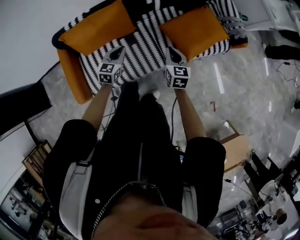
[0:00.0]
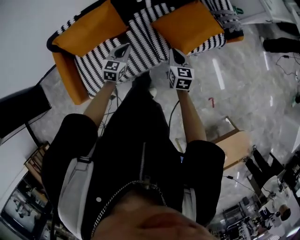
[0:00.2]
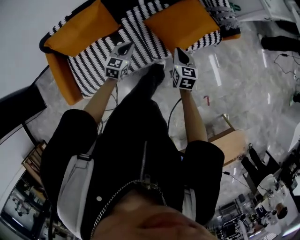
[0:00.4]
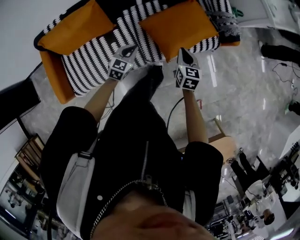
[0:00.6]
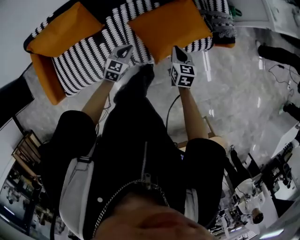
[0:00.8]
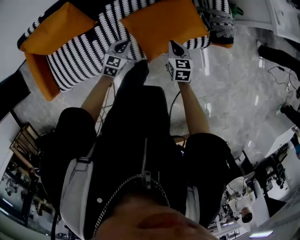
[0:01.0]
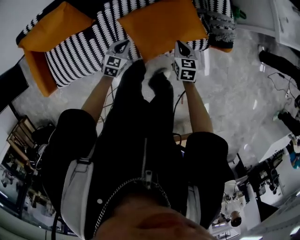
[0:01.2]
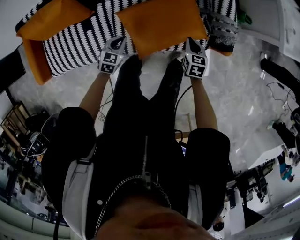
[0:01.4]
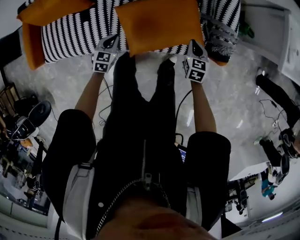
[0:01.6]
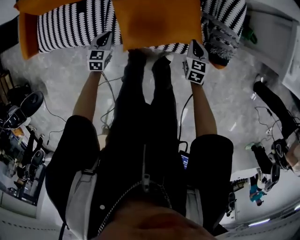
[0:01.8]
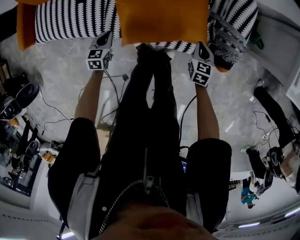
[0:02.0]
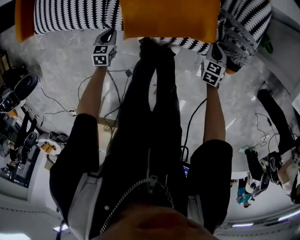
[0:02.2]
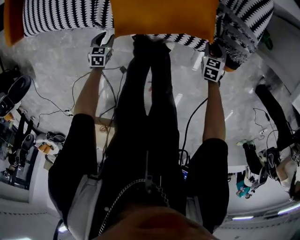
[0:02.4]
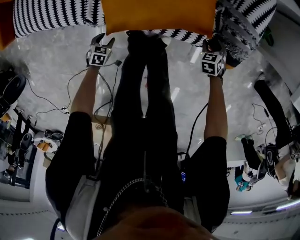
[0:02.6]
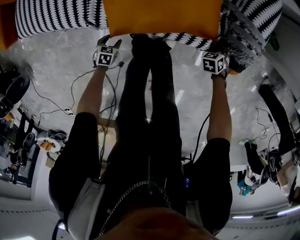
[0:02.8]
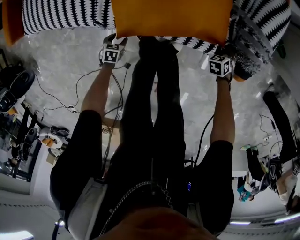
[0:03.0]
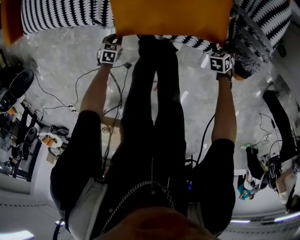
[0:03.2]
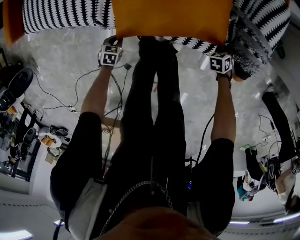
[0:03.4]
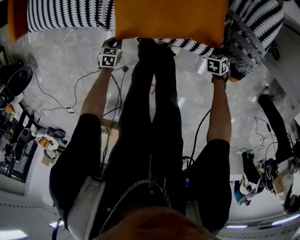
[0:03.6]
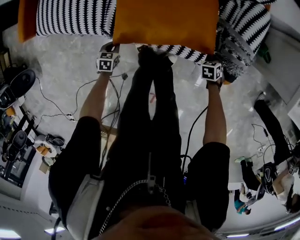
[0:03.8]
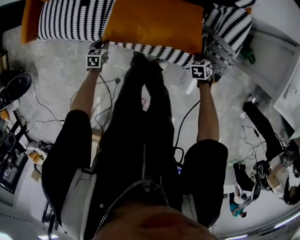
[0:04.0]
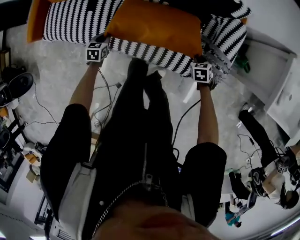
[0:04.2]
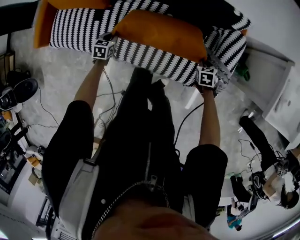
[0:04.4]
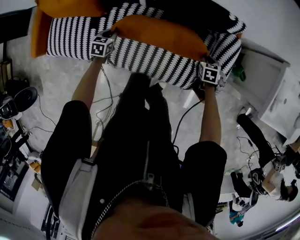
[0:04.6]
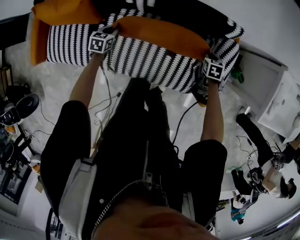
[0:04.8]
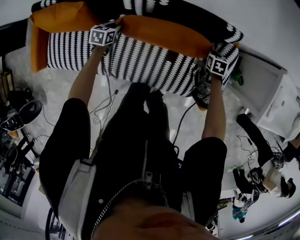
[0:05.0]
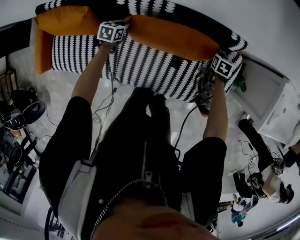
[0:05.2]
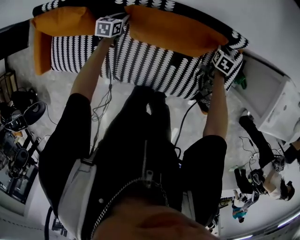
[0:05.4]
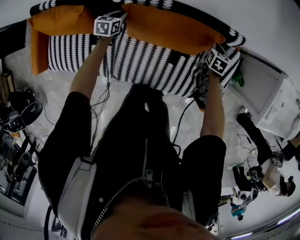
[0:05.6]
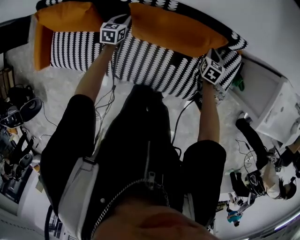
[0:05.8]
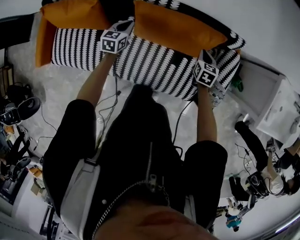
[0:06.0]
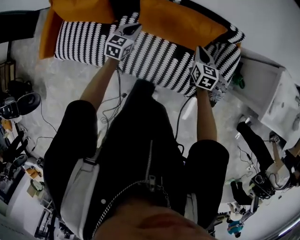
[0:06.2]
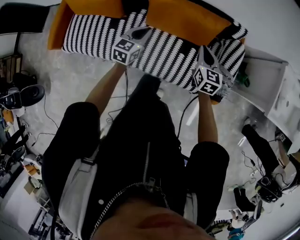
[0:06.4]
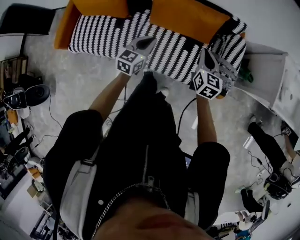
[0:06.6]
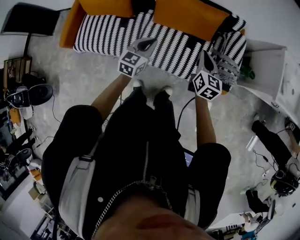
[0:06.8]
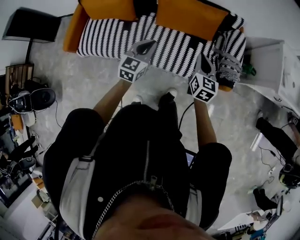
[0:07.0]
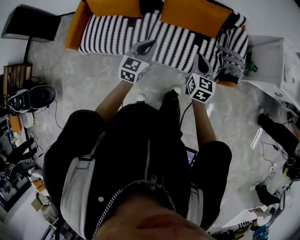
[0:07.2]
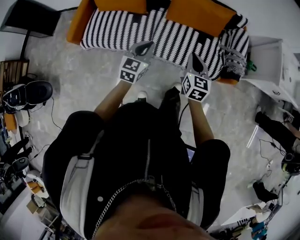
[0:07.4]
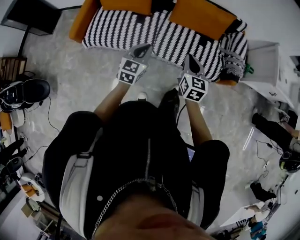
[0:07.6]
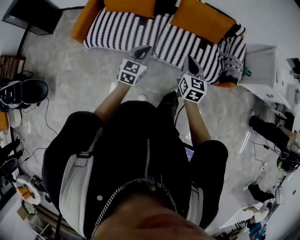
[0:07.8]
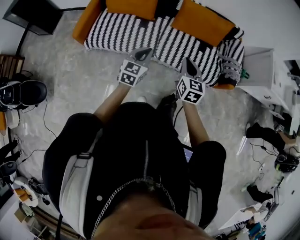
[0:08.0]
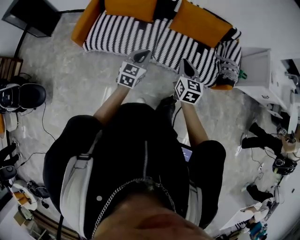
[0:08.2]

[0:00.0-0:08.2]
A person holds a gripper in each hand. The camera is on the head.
0:00.0 to 0:01.6: The pair of grippers is taken to the right and forward, some 50 cm. The left gripper goes roughly 15 cm downward, and rotates approximately 20 degrees. Meanwhile the right gripper changes its angle by approximately 30 degrees.
0:01.6 to 0:03.2: Both grippers travel together downward, roughly 30 cm. The left gripper changes its angle by roughly 30 degrees, and opens and closes again; the right gripper angles its fingers downward, by roughly 30 degrees, and opens its fingers.
0:03.2 to 0:05.0: The right gripper moves approximately 50 cm, turns by roughly 30 degrees, and closes, while the left gripper changes place by some 60 cm, and swivels some 20 degrees.
0:05.0 to 0:06.6: The right gripper shifts approximately 40 cm backward and upward, and angles its fingers upward, by approximately 40 degrees. Meanwhile the left gripper heads backward, upward and to the right, covering approximately 40 cm, and rotates some 30 degrees.
0:06.6 to 0:08.2: The two grippers travel together, backward and to the left, about 40 cm.

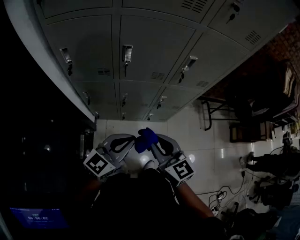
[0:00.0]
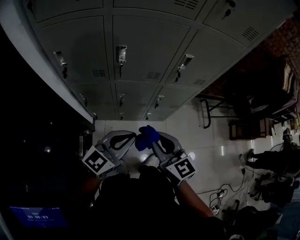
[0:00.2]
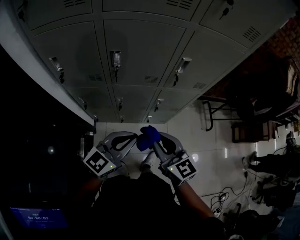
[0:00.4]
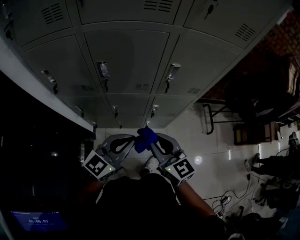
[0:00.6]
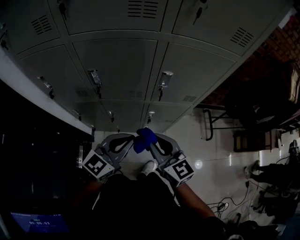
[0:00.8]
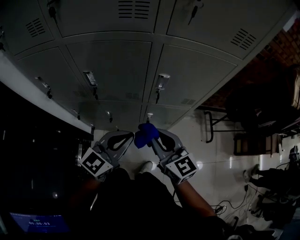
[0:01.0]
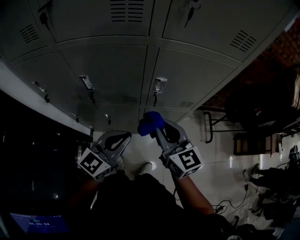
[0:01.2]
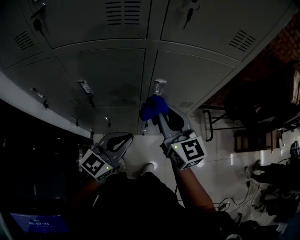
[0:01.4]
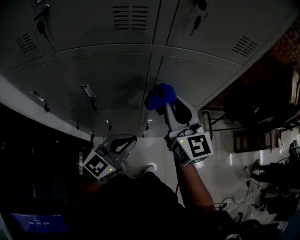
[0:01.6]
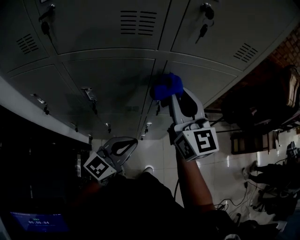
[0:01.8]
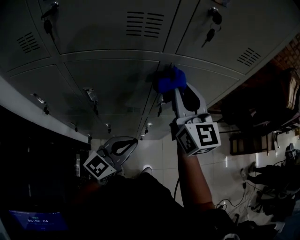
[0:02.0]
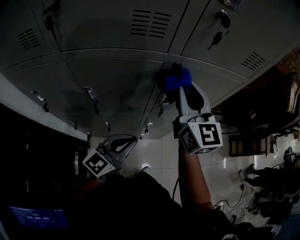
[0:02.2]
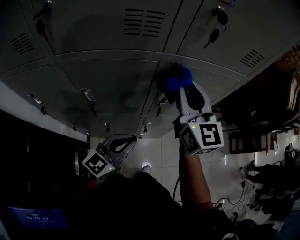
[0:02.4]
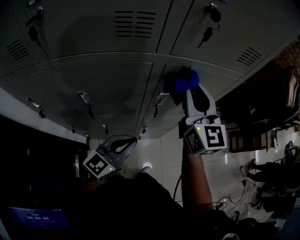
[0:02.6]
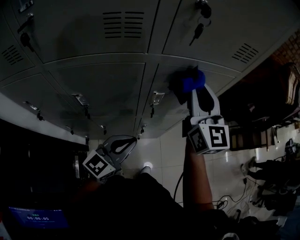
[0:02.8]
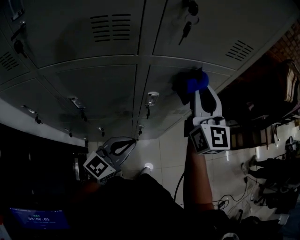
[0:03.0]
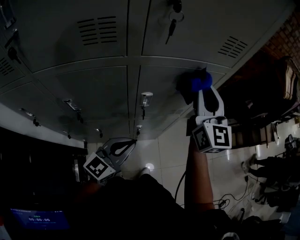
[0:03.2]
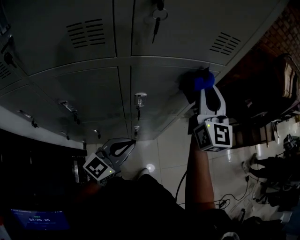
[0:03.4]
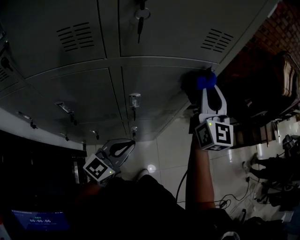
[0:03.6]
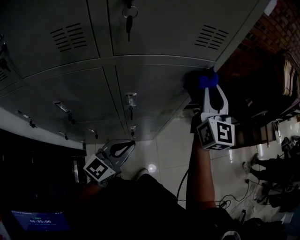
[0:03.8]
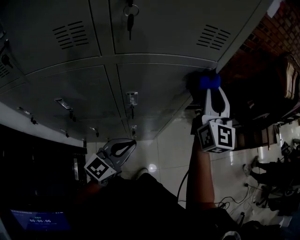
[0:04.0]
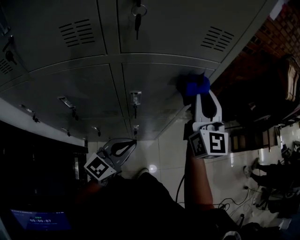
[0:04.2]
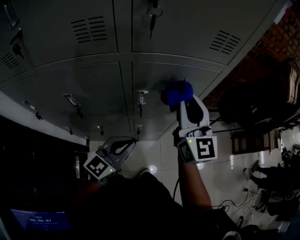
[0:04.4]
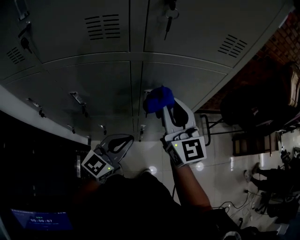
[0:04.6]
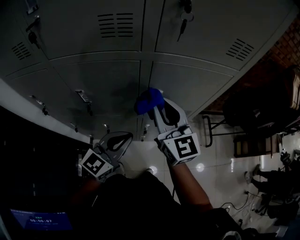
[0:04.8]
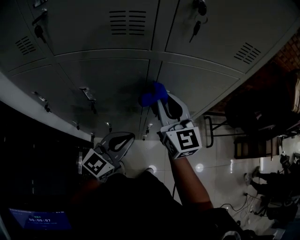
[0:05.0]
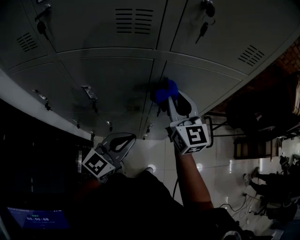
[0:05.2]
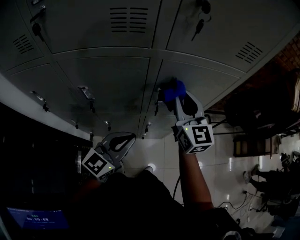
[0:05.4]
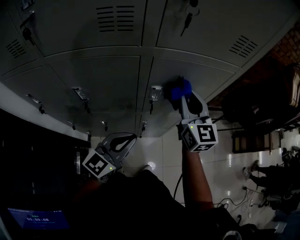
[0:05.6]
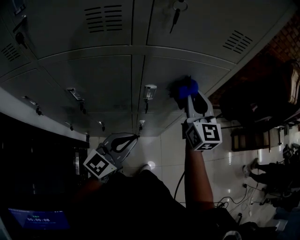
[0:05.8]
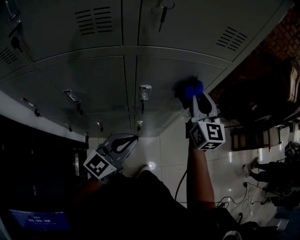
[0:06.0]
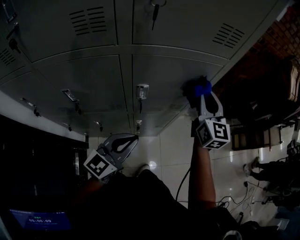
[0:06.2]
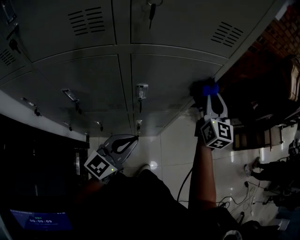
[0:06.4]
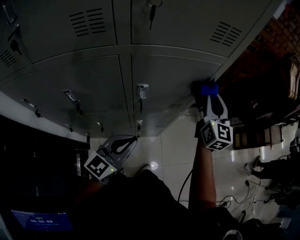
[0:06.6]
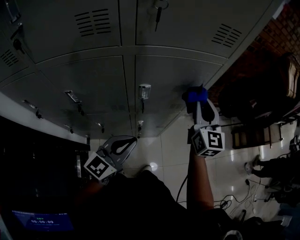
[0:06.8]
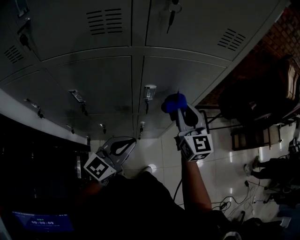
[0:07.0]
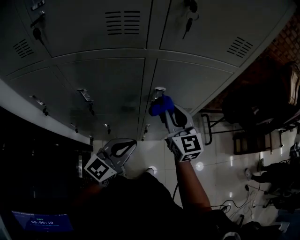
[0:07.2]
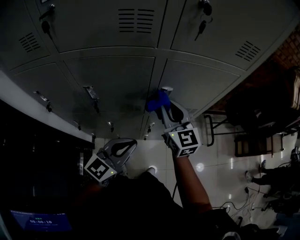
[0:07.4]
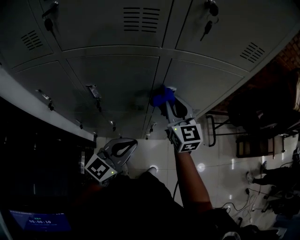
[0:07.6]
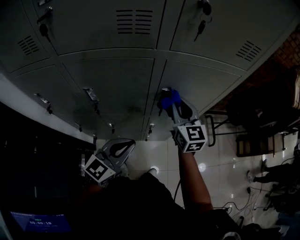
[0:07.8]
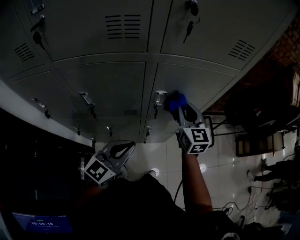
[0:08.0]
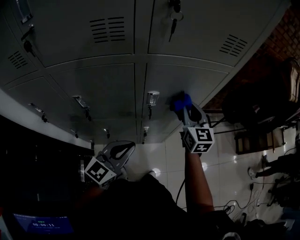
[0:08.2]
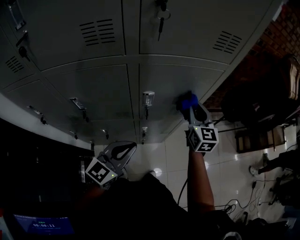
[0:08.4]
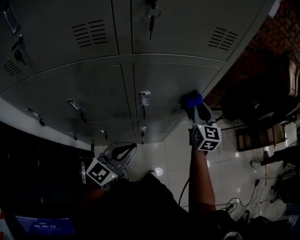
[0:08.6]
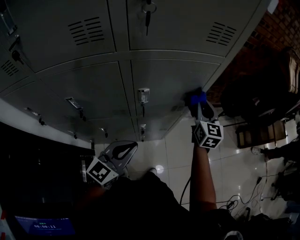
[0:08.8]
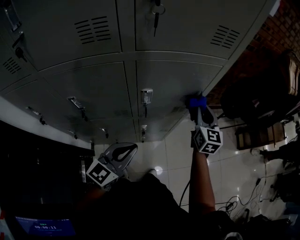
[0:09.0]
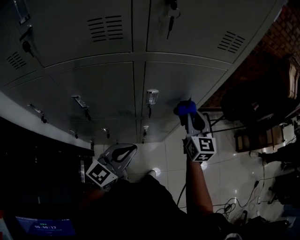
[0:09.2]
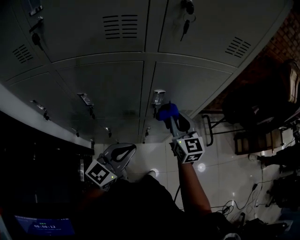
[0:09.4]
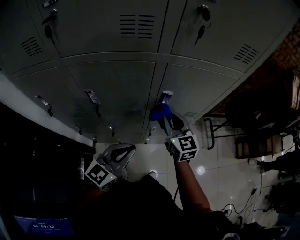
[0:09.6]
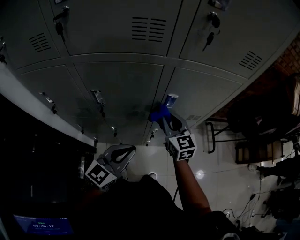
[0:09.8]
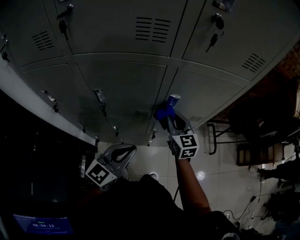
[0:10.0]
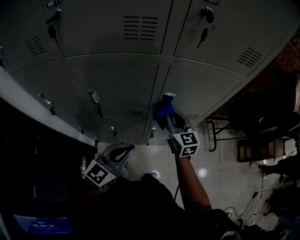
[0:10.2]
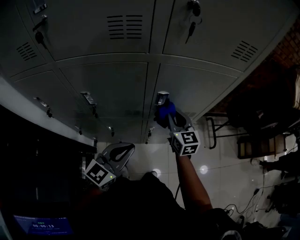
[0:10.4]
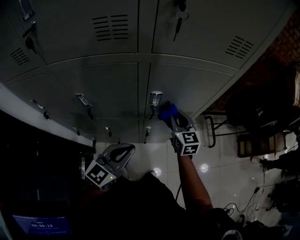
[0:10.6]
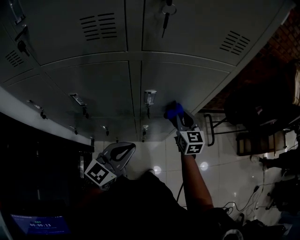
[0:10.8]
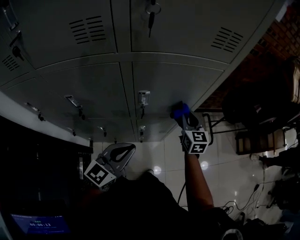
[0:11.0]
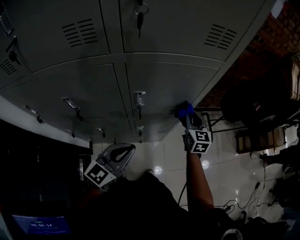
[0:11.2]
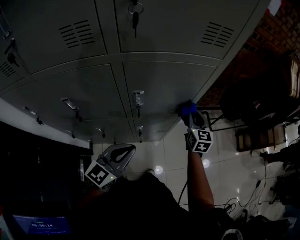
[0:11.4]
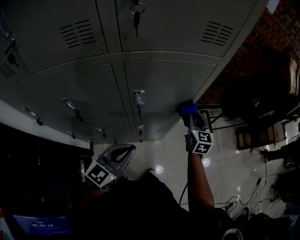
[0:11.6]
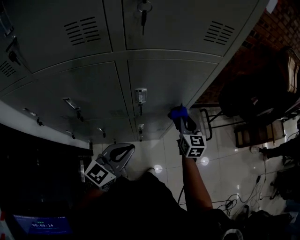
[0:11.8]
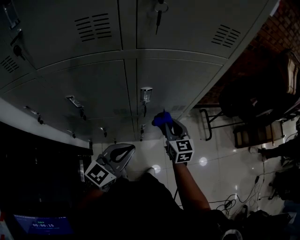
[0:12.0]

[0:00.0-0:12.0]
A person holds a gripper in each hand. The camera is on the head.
0:00.0 to 0:01.6: The left gripper heads forward and to the right, covering roughly 20 cm; the right gripper moves forward, to the right and upward, about 35 cm, and turns by some 20 degrees.
0:01.6 to 0:03.0: The right gripper shifts roughly 15 cm forward, to the right and upward.
0:03.0 to 0:04.4: The right gripper goes to the right and returns, some 10 cm each way.
0:04.4 to 0:06.0: The right gripper goes some 5 cm downward, and reaches roughly 15 cm to the left, then returns.
0:06.0 to 0:07.6: The left gripper goes about 5 cm to the left, while the right gripper heads to the left and backward, covering about 15 cm.
0:07.6 to 0:09.0: The right gripper travels to the right by some 20 cm, and rotates some 30 degrees; the left gripper goes roughly 5 cm to the right.
0:09.0 to 0:10.4: The left gripper is displaced to the left by some 5 cm. The right gripper heads to the left, covering roughly 20 cm, and changes its angle by about 20 degrees.
0:10.4 to 0:12.0: The right gripper travels downward by roughly 5 cm, and travels to the right and back again, roughly 20 cm each way.

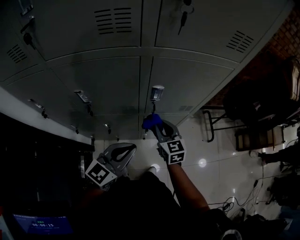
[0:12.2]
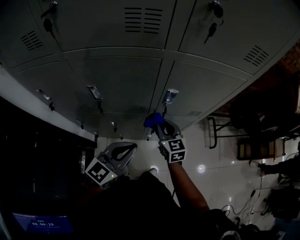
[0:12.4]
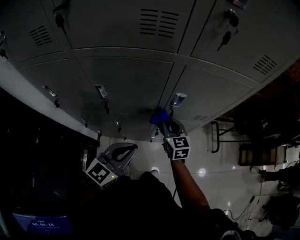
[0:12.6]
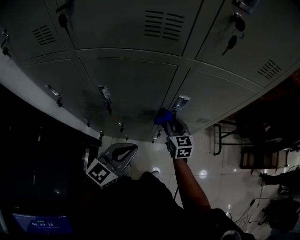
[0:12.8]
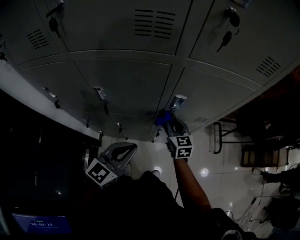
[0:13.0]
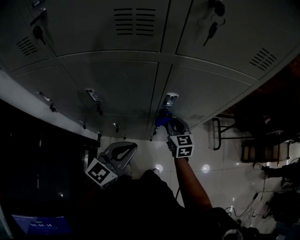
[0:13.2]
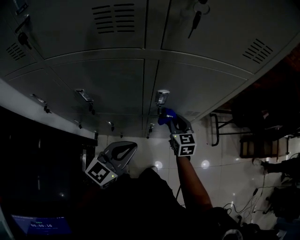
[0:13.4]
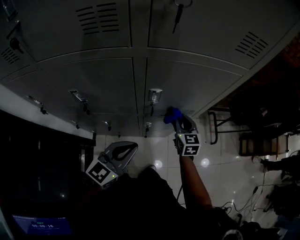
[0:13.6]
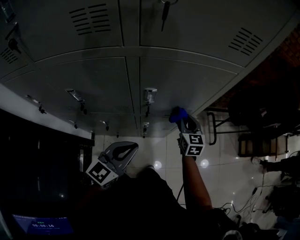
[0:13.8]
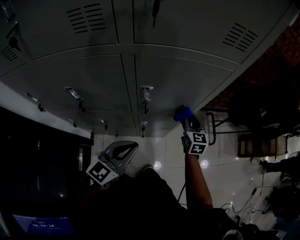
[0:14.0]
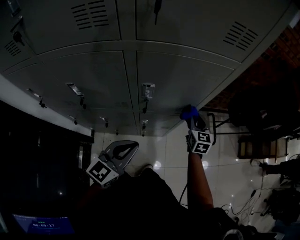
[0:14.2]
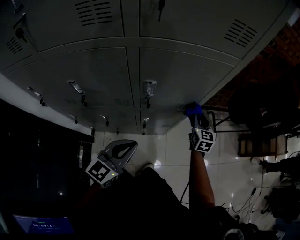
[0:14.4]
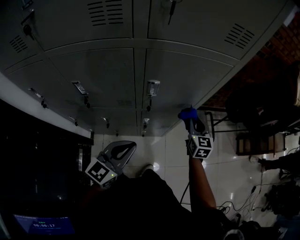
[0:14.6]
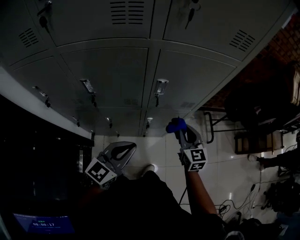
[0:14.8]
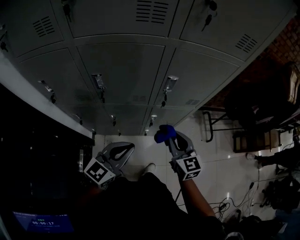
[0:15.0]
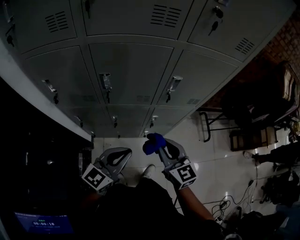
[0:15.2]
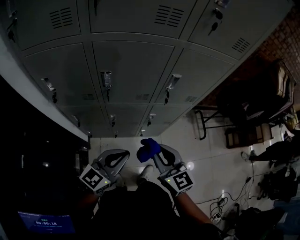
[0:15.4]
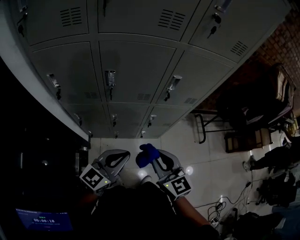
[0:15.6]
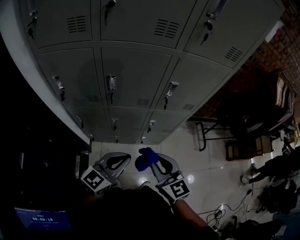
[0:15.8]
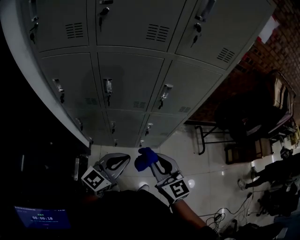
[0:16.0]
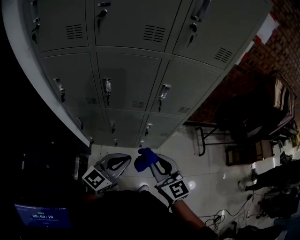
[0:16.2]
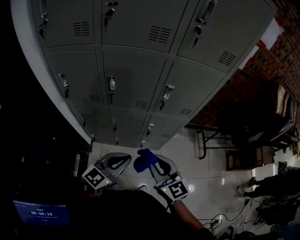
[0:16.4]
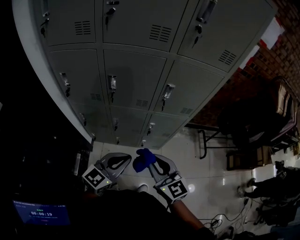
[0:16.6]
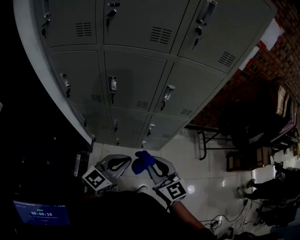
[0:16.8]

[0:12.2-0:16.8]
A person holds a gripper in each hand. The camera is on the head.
0:12.2 to 0:13.8: The left gripper shifts by some 5 cm. Meanwhile the right gripper shifts about 15 cm to the right and forward.
0:13.8 to 0:15.2: The left gripper heads backward and to the left, covering about 20 cm. Meanwhile the right gripper shifts roughly 35 cm backward and to the left, and swivels approximately 20 degrees.
0:15.2 to 0:16.8: The left gripper goes about 5 cm backward, while the right gripper shifts about 10 cm backward and upward.
